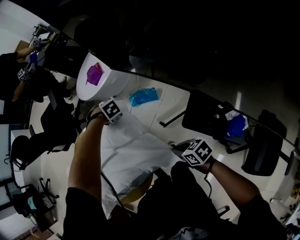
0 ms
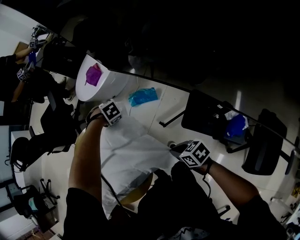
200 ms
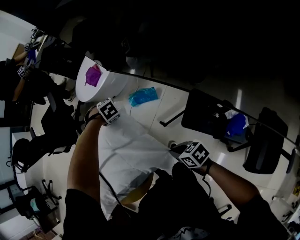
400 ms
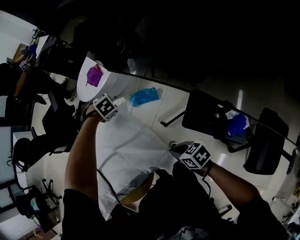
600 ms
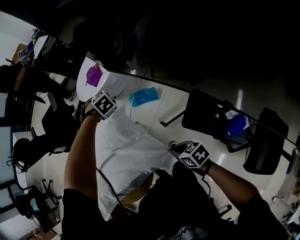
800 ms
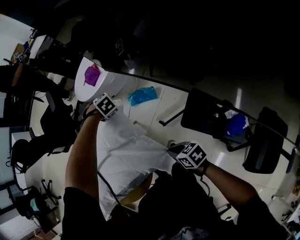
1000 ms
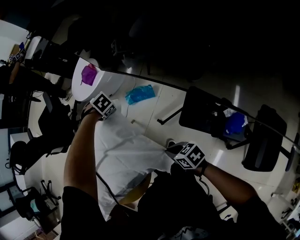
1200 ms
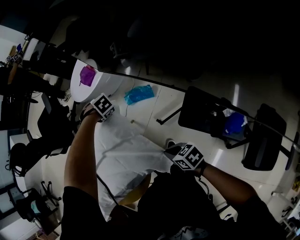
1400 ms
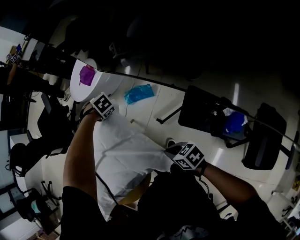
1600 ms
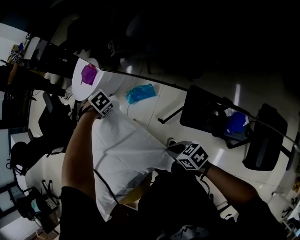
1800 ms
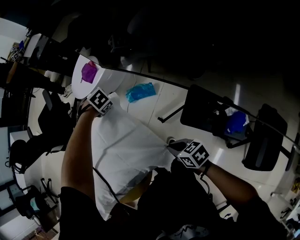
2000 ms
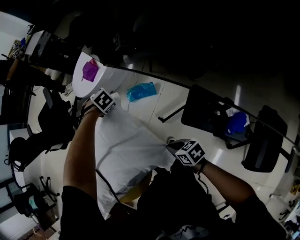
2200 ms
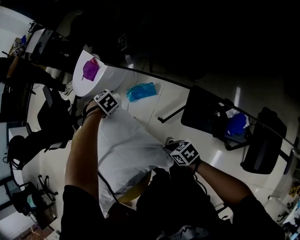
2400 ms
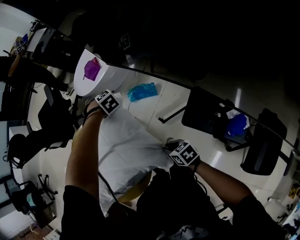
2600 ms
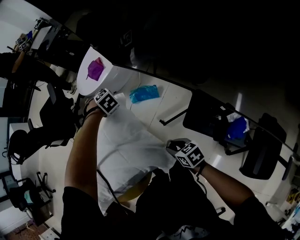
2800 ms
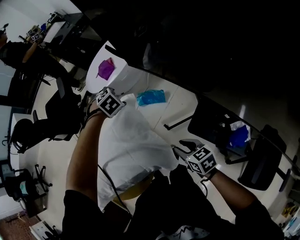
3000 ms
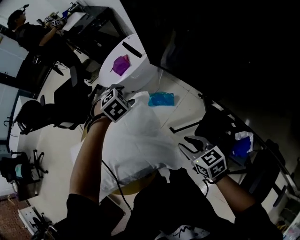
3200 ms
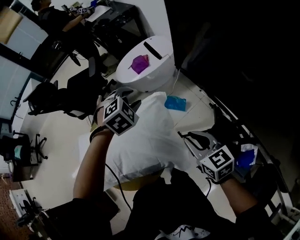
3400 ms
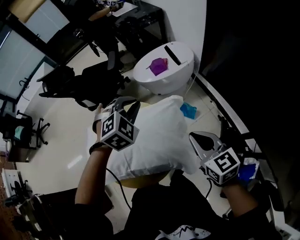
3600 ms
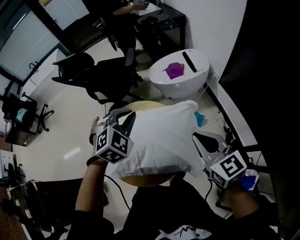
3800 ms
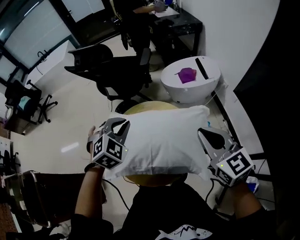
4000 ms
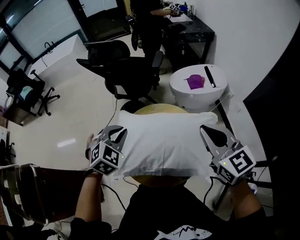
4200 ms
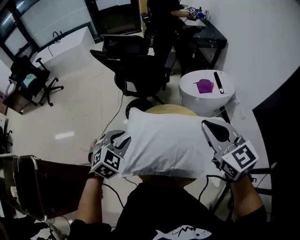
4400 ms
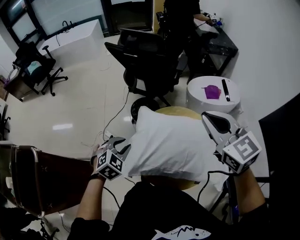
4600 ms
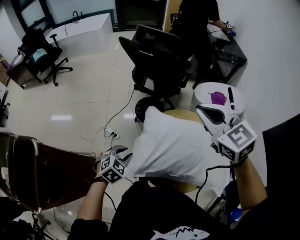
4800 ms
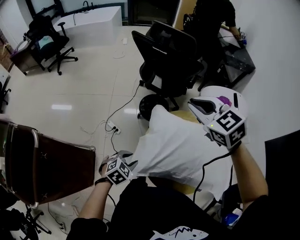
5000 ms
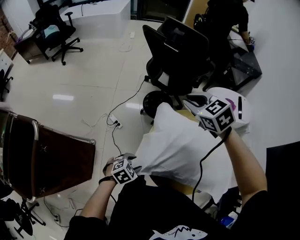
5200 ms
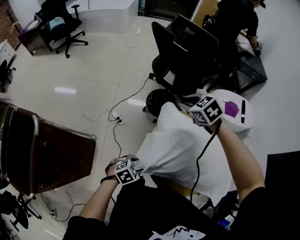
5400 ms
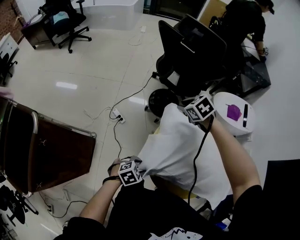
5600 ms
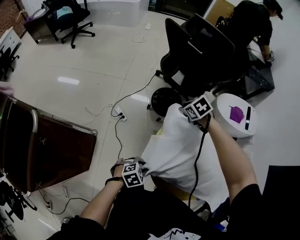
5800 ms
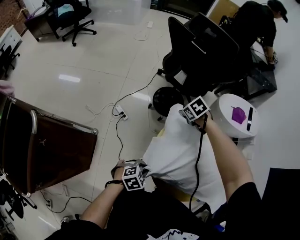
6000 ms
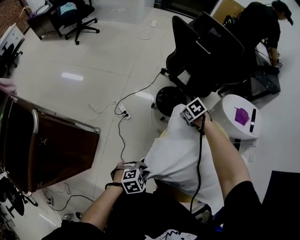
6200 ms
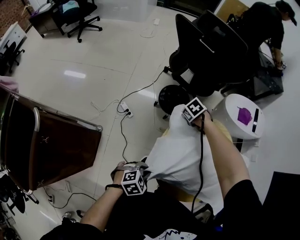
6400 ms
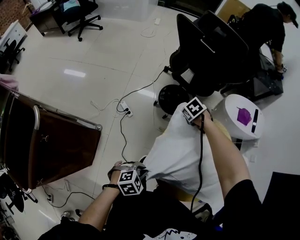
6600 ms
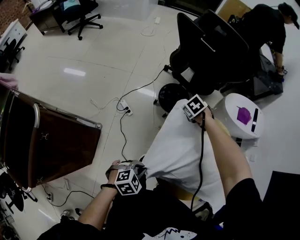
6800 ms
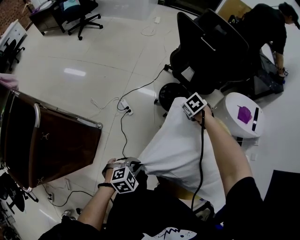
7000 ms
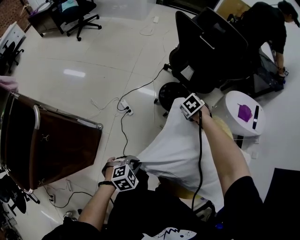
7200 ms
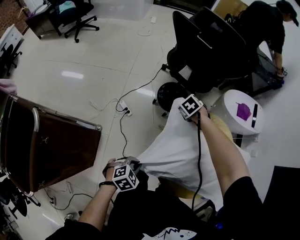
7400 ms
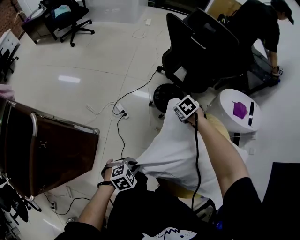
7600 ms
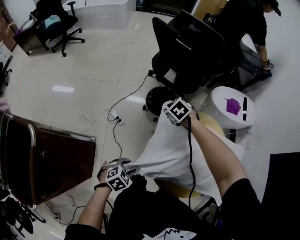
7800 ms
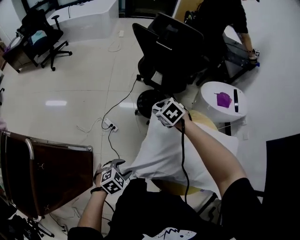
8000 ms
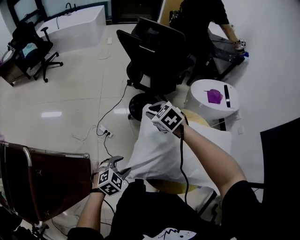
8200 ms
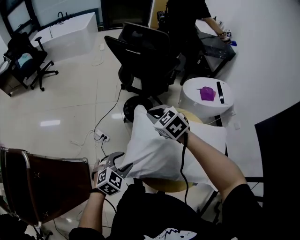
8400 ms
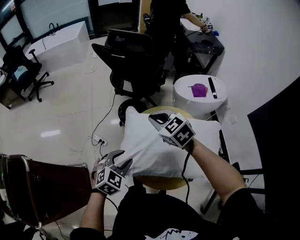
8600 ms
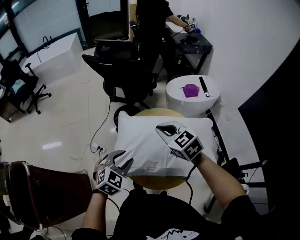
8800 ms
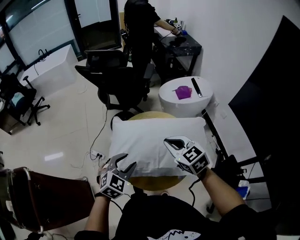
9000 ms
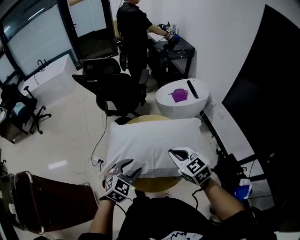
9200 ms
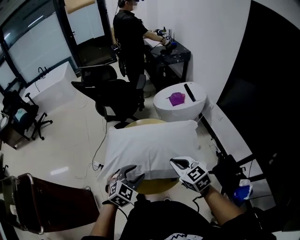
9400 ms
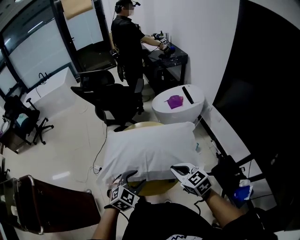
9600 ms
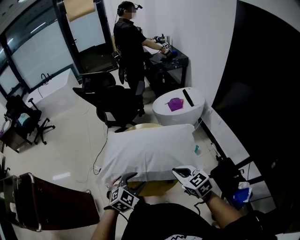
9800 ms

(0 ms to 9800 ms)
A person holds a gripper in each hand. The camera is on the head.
1400 ms - 2800 ms: The right gripper opens its fingers.
2800 ms - 4200 ms: The right gripper is displaced upward by approximately 40 cm, rolls counterclockwise, seen from behind, by about 50 degrees, and closes its fingers.
4200 ms - 5600 ms: The right gripper moves some 50 cm, tilts its fingers some 50 degrees downward, and opens its fingers.
5600 ms - 7000 ms: The right gripper shifts approximately 15 cm downward, and closes up.
7000 ms - 8400 ms: The right gripper goes about 20 cm upward, points its fingers roughly 30 degrees further upward, and opens and closes again.
8400 ms - 9800 ms: The right gripper shifts by about 50 cm, and swivels approximately 30 degrees.

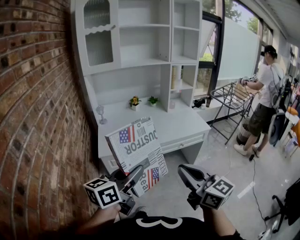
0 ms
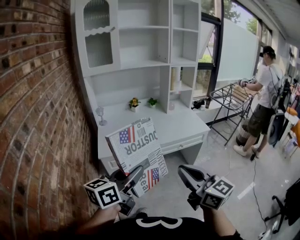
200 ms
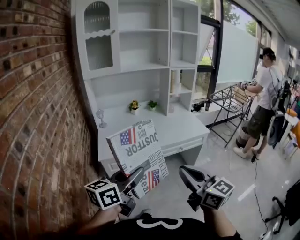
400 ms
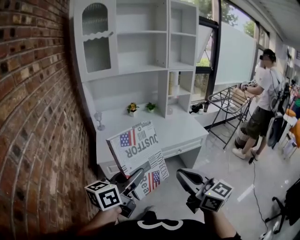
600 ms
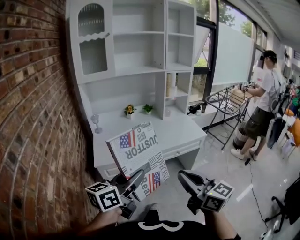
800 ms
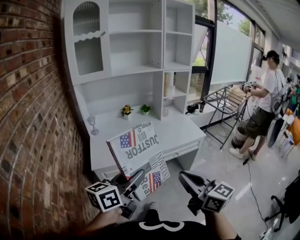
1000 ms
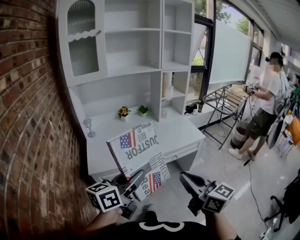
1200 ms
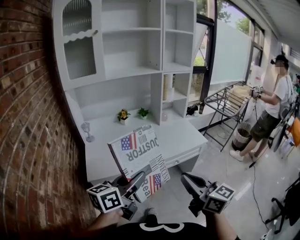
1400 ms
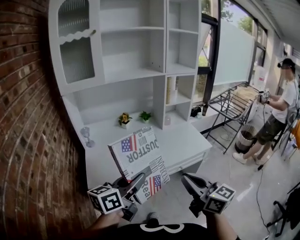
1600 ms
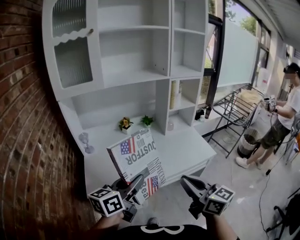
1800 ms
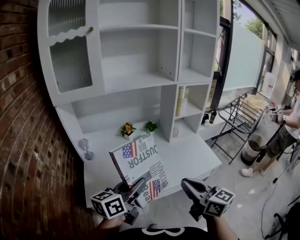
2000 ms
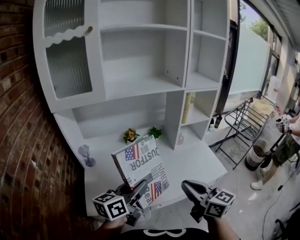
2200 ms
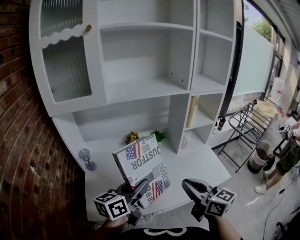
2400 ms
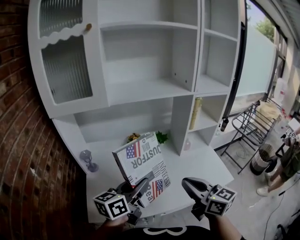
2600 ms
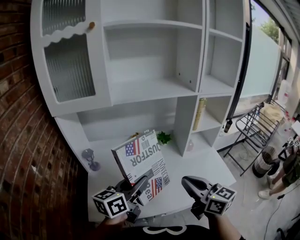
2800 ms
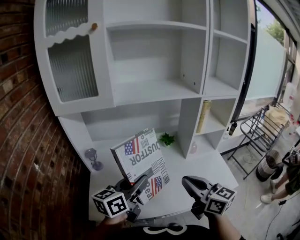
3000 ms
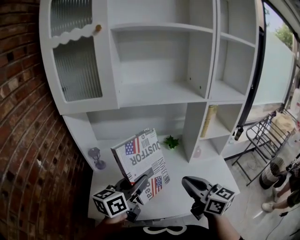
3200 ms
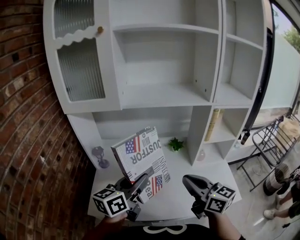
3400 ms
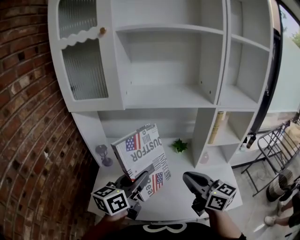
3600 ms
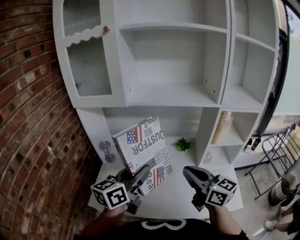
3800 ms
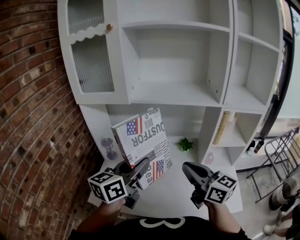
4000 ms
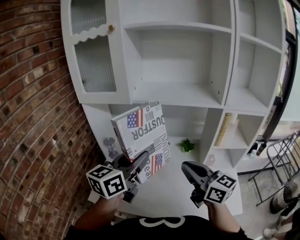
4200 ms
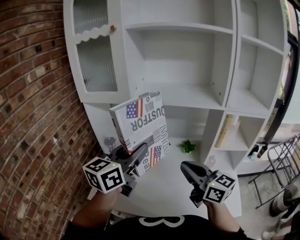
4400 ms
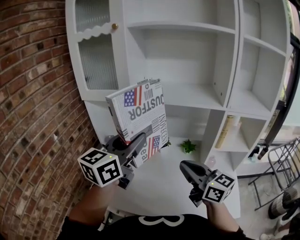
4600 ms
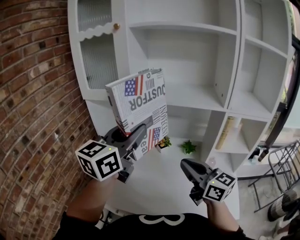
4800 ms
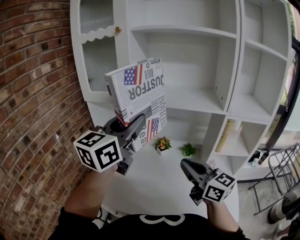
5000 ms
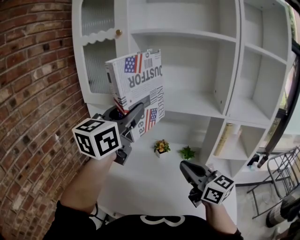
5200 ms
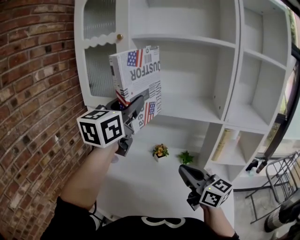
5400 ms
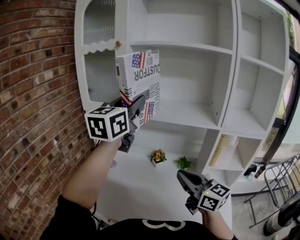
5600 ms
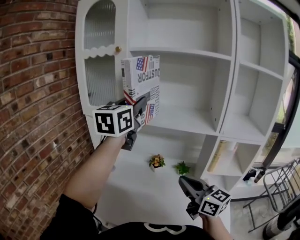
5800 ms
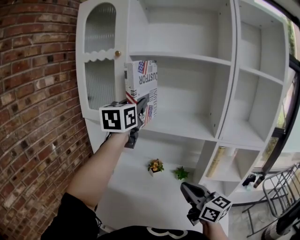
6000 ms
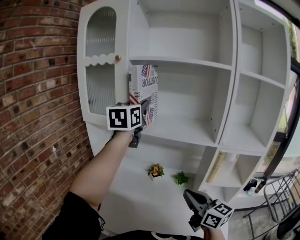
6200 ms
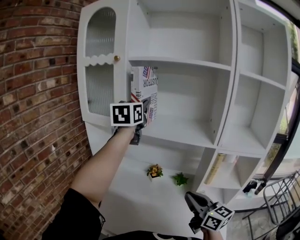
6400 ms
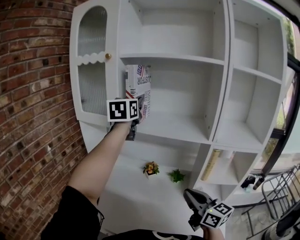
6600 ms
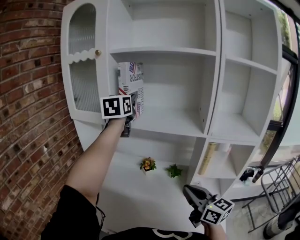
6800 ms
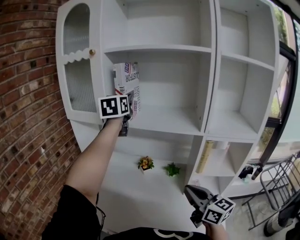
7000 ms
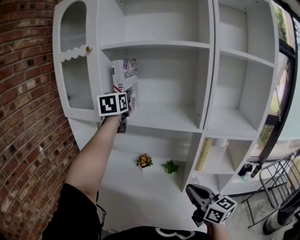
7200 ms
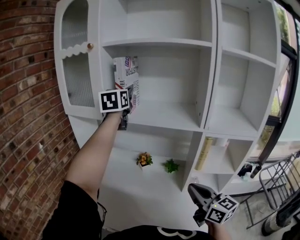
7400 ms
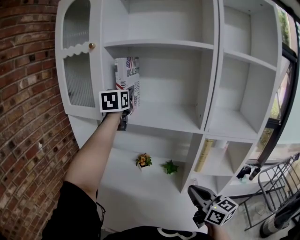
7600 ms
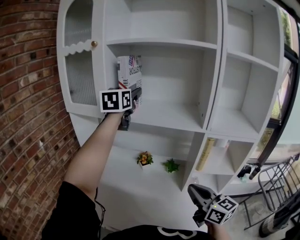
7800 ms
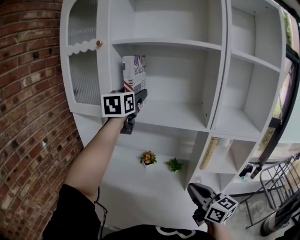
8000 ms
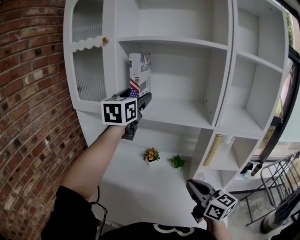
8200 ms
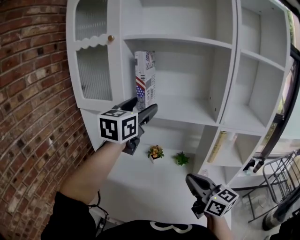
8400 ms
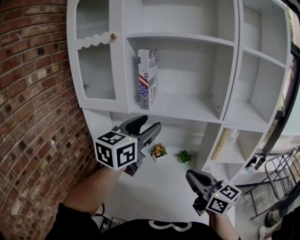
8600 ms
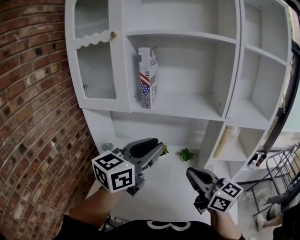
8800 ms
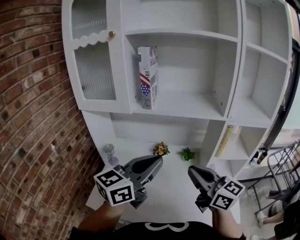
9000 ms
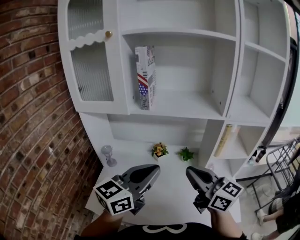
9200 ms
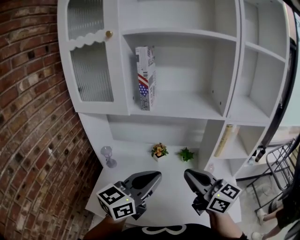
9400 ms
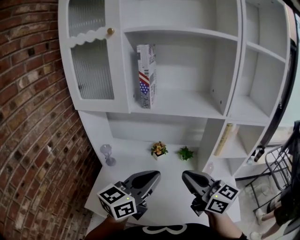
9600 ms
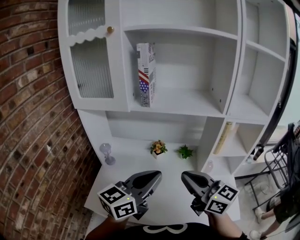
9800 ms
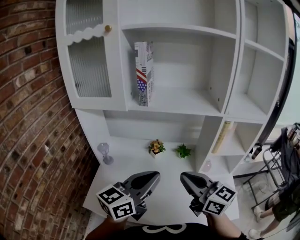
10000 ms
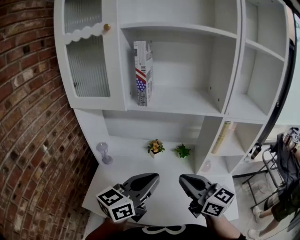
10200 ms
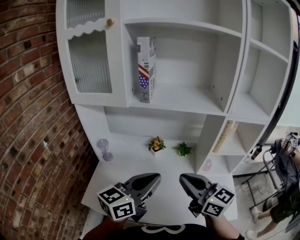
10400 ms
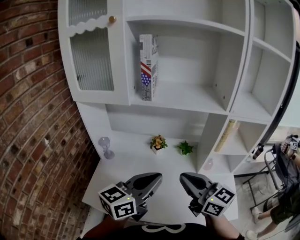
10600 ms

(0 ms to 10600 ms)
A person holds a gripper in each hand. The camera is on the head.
0 ms - 1600 ms: The two grippers go roughly 20 cm forward.
1600 ms - 3000 ms: The two grippers go roughly 30 cm forward.
3000 ms - 4600 ms: The left gripper shifts about 15 cm upward, and swivels approximately 30 degrees. Meanwhile the right gripper is displaced forward by some 10 cm, and rotates approximately 20 degrees.
4600 ms - 6000 ms: The right gripper travels to the right by some 5 cm, while the left gripper is displaced forward and upward by roughly 20 cm, and swivels approximately 20 degrees.
6000 ms - 7600 ms: The right gripper travels to the right by about 10 cm. Meanwhile the left gripper is displaced forward by roughly 10 cm.
7600 ms - 9000 ms: The right gripper shifts about 15 cm to the left and upward. The left gripper travels backward and downward by about 30 cm, swivels roughly 50 degrees, and closes its fingers.
9000 ms - 10600 ms: The left gripper travels downward by some 10 cm, while the right gripper shifts by approximately 5 cm.

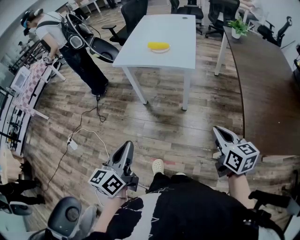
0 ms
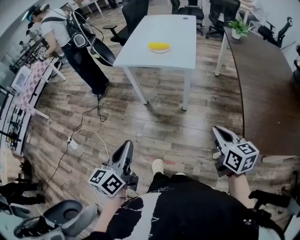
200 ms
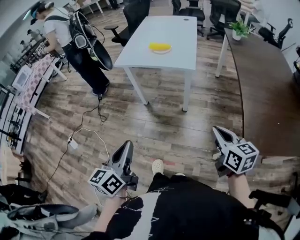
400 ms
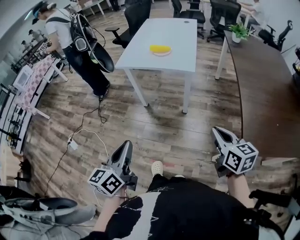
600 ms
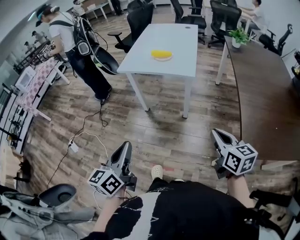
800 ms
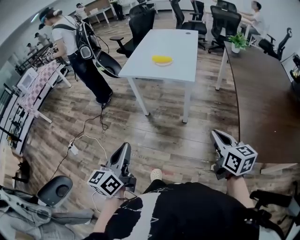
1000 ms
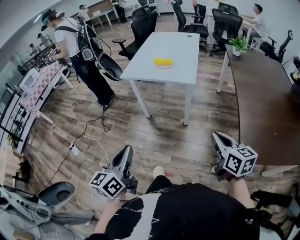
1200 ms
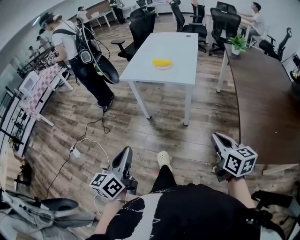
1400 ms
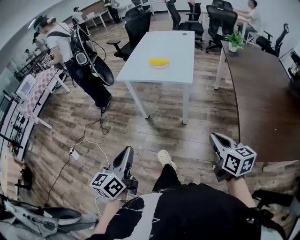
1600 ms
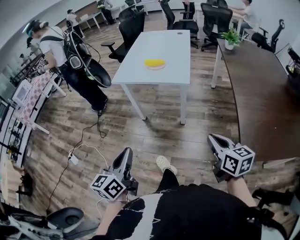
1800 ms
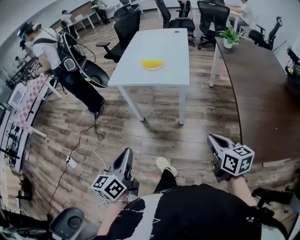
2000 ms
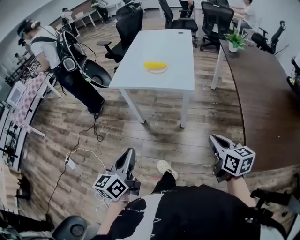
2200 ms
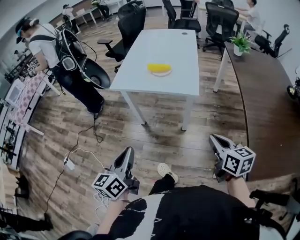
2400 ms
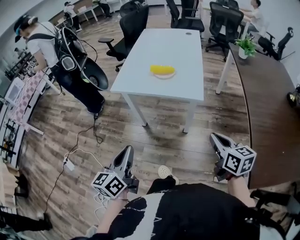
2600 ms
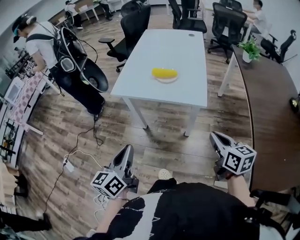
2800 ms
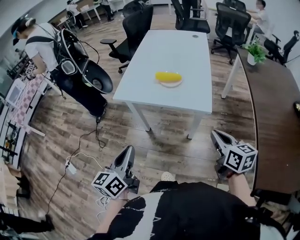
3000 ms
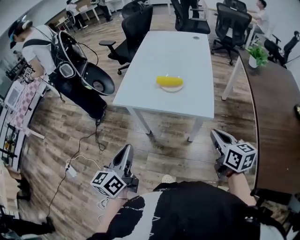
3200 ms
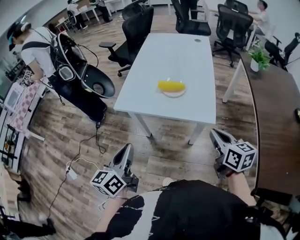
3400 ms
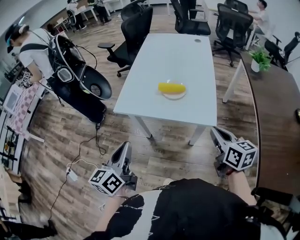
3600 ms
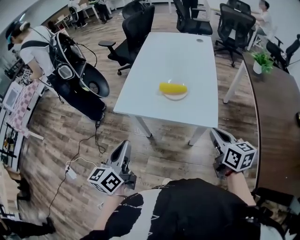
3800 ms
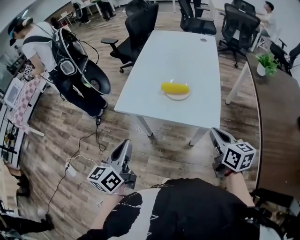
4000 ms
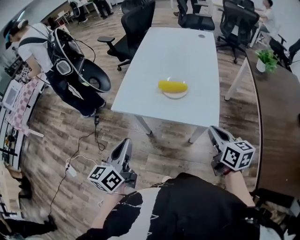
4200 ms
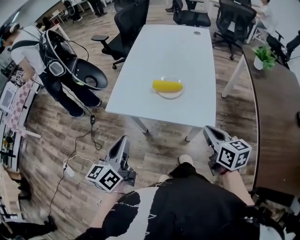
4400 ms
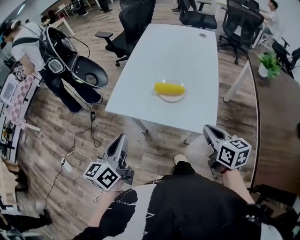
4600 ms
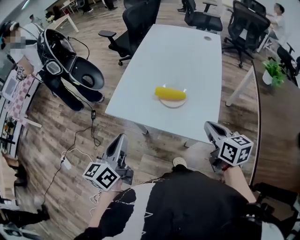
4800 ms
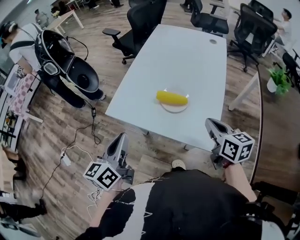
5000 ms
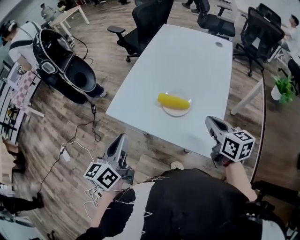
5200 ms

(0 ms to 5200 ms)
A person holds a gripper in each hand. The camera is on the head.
0 ms - 1800 ms: The grippers make only small movements.
1800 ms - 3400 ms: The two grippers go roughly 35 cm forward.
3400 ms - 5200 ms: Both grippers travel together forward, roughly 20 cm.
